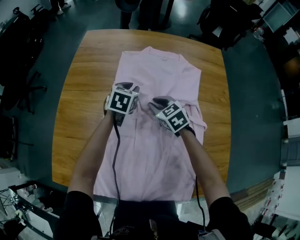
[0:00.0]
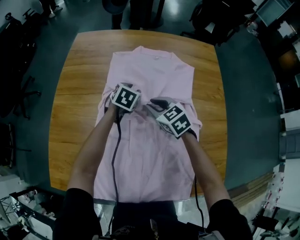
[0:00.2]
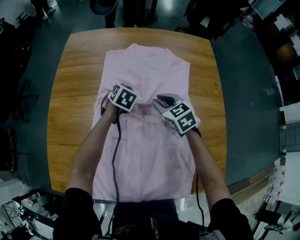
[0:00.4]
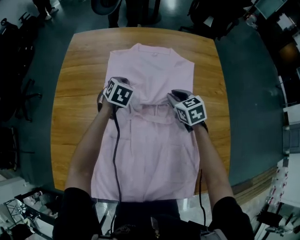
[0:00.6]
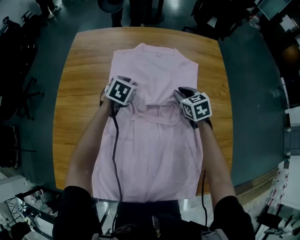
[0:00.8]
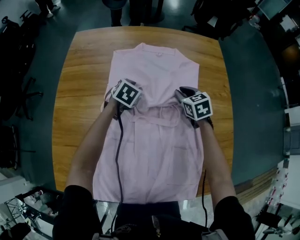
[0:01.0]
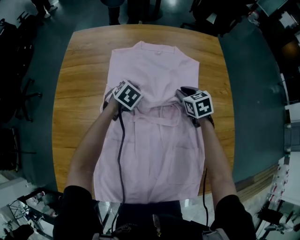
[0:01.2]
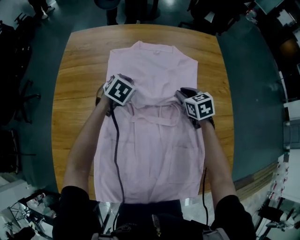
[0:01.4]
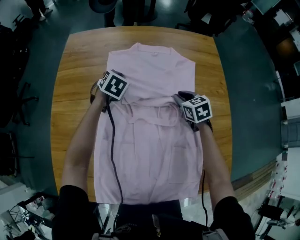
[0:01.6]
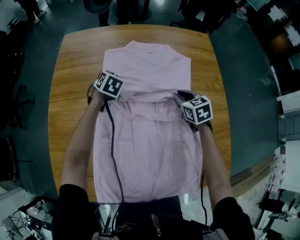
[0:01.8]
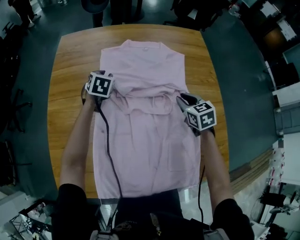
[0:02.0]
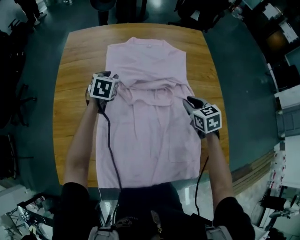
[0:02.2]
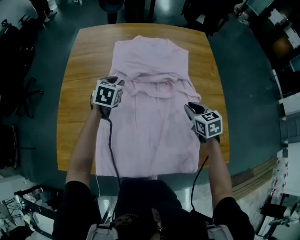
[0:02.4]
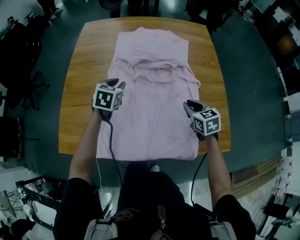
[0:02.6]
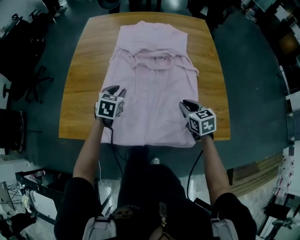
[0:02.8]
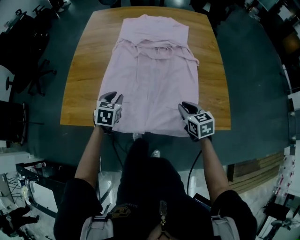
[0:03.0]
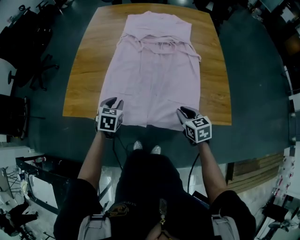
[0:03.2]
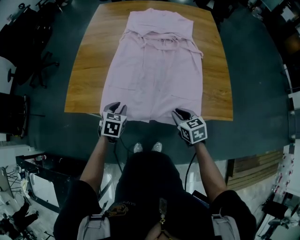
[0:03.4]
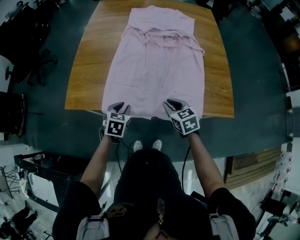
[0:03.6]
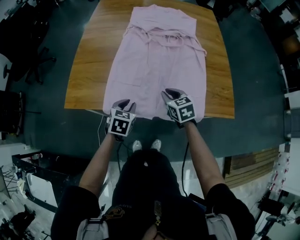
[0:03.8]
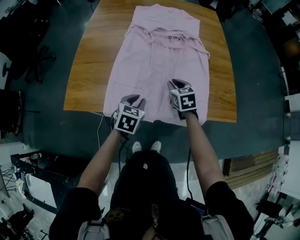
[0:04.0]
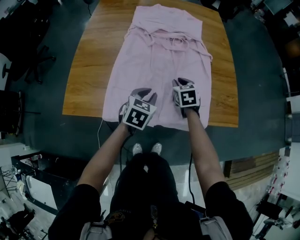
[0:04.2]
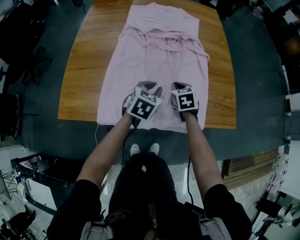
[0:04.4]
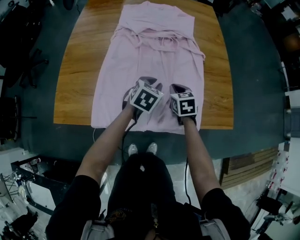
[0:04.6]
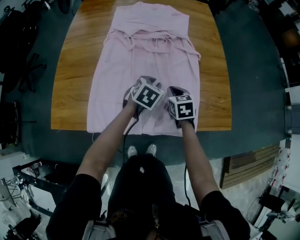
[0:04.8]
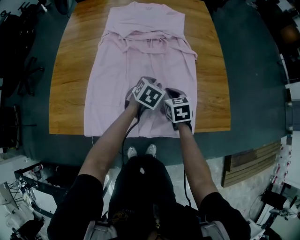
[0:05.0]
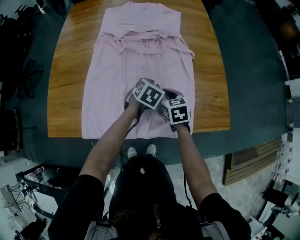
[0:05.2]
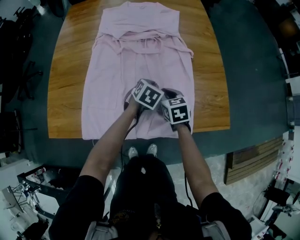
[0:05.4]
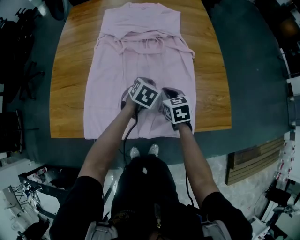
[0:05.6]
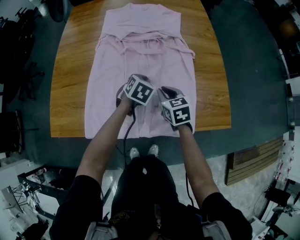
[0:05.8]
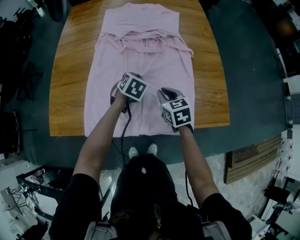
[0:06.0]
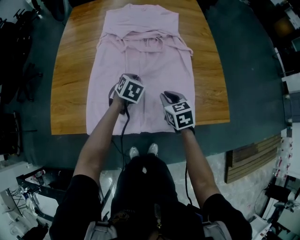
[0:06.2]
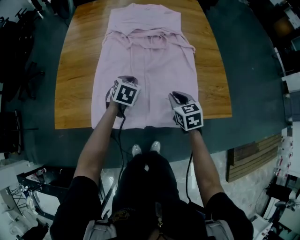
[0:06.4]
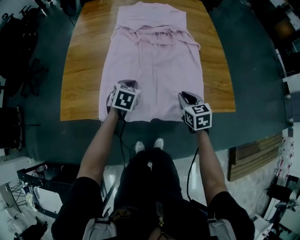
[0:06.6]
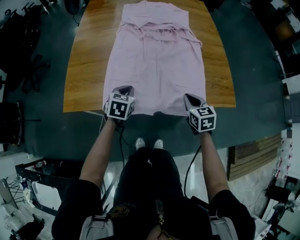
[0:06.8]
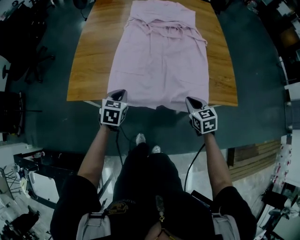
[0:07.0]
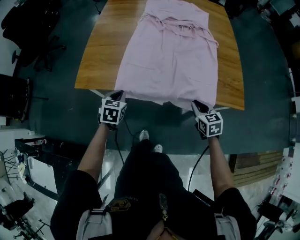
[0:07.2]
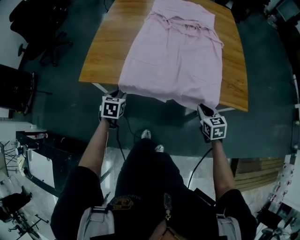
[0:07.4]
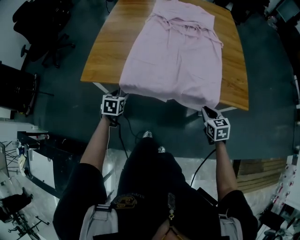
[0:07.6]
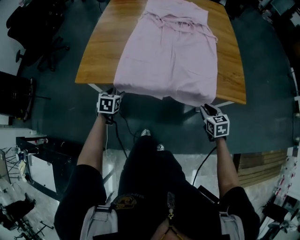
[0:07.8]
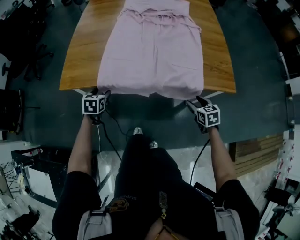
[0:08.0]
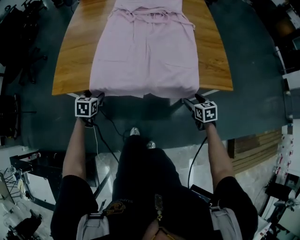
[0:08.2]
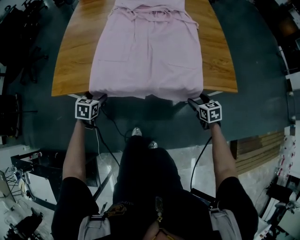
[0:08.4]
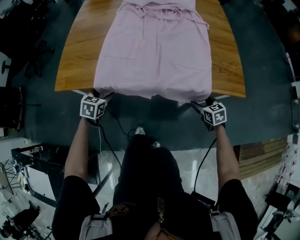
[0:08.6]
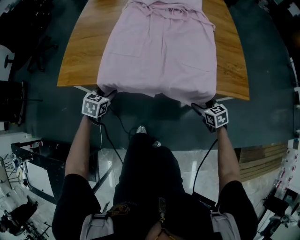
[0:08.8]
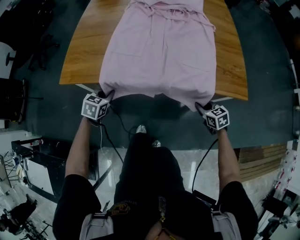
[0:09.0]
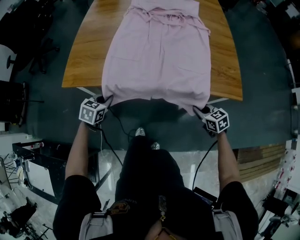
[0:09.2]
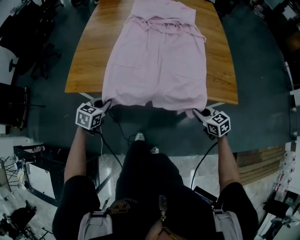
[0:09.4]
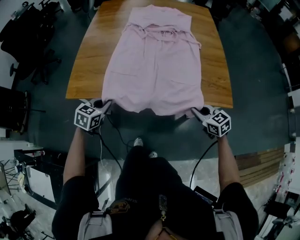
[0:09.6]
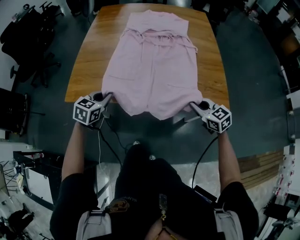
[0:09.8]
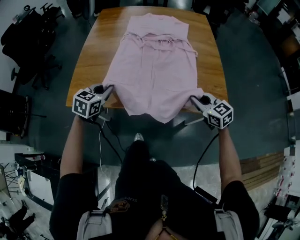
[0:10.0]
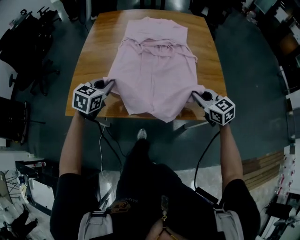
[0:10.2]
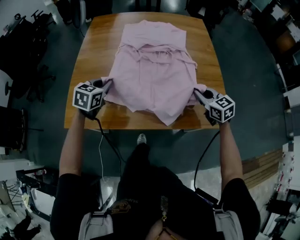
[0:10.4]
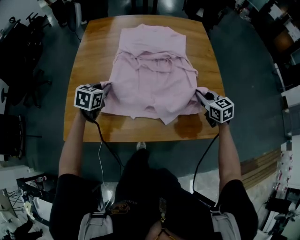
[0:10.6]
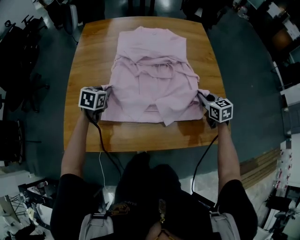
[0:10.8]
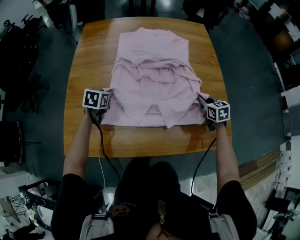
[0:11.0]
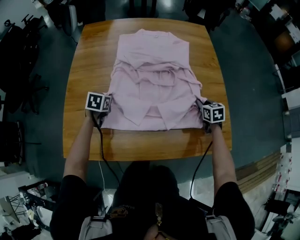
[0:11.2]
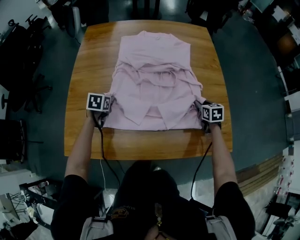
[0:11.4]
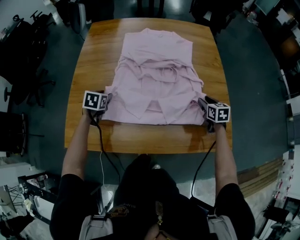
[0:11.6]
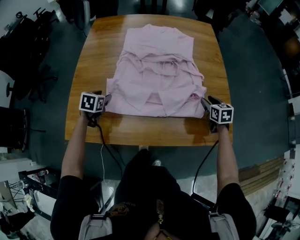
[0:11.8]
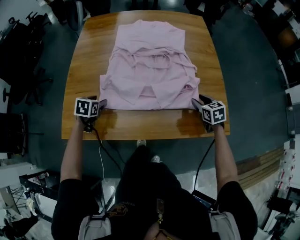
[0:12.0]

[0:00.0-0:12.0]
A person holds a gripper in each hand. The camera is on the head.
0:00.0 to 0:01.6: The right gripper is displaced to the right by some 15 cm, and changes its angle by some 20 degrees; the left gripper travels forward by about 5 cm, and changes its angle by roughly 20 degrees.
0:01.6 to 0:03.0: The pair of grippers is taken backward, approximately 40 cm. The left gripper swivels roughly 20 degrees, and opens up.
0:03.0 to 0:04.4: The right gripper shifts about 15 cm forward, to the left and downward; the left gripper shifts some 15 cm to the right.
0:04.4 to 0:06.0: The left gripper shifts roughly 10 cm forward and downward.
0:06.0 to 0:07.6: The right gripper travels backward by roughly 25 cm, while the left gripper heads to the left and backward, covering some 40 cm, turns by about 30 degrees, and opens.
0:07.6 to 0:09.0: The left gripper ends up roughly 5 cm from where it was, and closes. Meanwhile the right gripper travels downward by some 10 cm, and opens, then closes again.
0:09.0 to 0:10.4: Both grippers move upward and forward, roughly 30 cm. The right gripper turns by some 20 degrees.
0:10.4 to 0:12.0: The right gripper is displaced downward and to the right by some 10 cm, travels forward and back again, some 15 cm each way, turns by approximately 20 degrees, and opens up. The left gripper moves downward and to the left, some 15 cm, changes its angle by about 20 degrees, and opens its fingers.

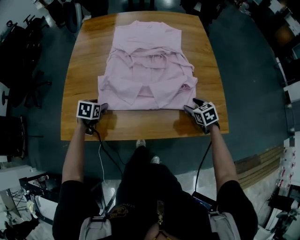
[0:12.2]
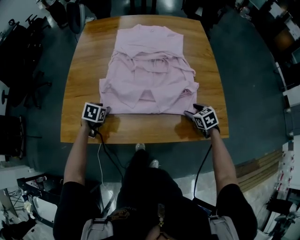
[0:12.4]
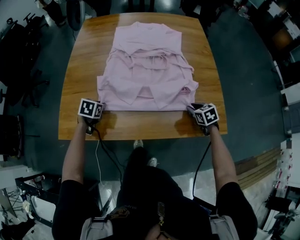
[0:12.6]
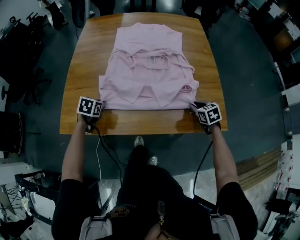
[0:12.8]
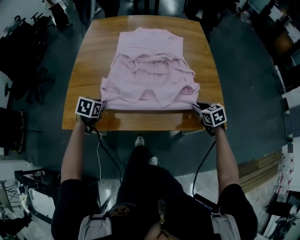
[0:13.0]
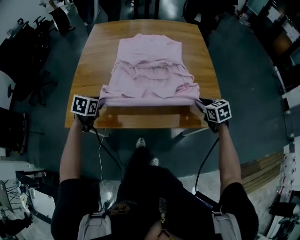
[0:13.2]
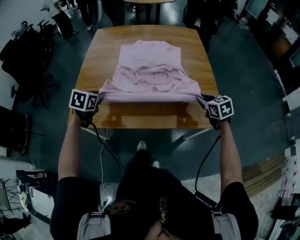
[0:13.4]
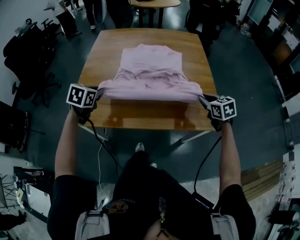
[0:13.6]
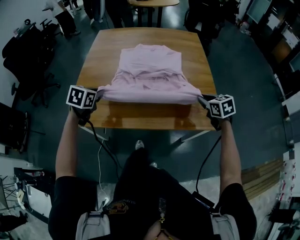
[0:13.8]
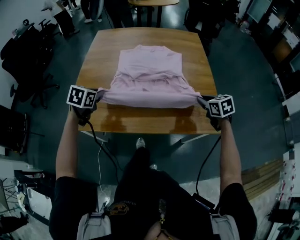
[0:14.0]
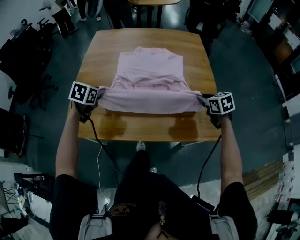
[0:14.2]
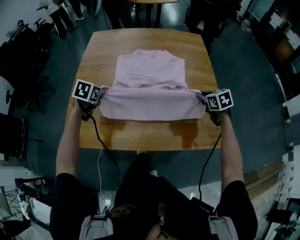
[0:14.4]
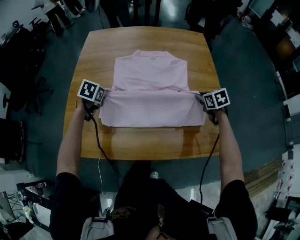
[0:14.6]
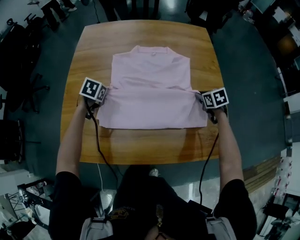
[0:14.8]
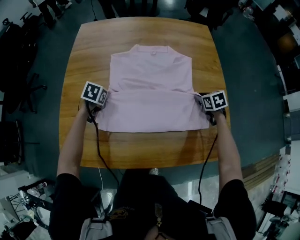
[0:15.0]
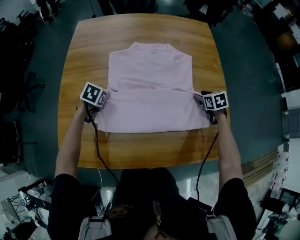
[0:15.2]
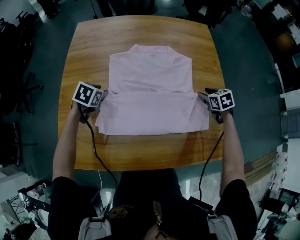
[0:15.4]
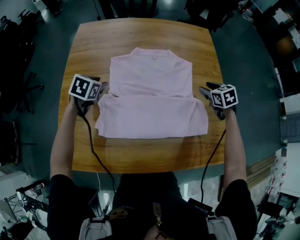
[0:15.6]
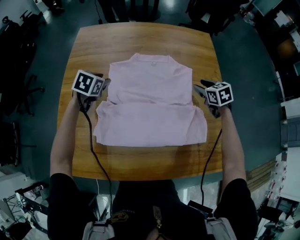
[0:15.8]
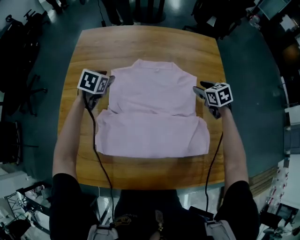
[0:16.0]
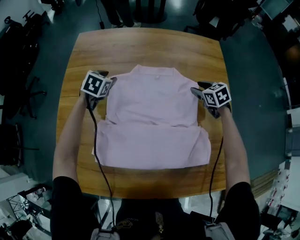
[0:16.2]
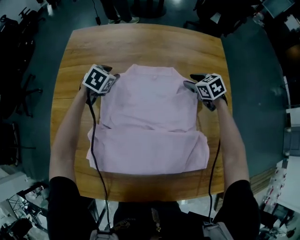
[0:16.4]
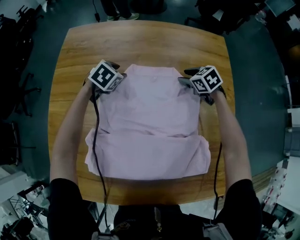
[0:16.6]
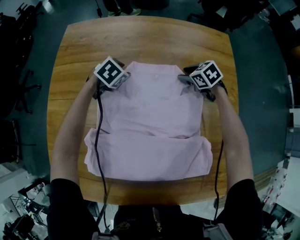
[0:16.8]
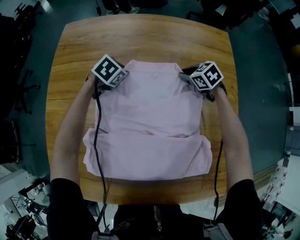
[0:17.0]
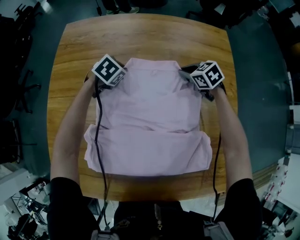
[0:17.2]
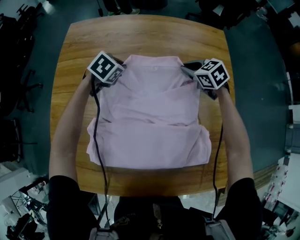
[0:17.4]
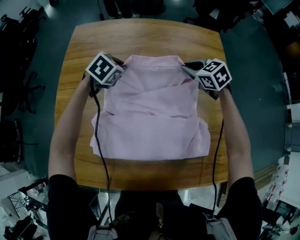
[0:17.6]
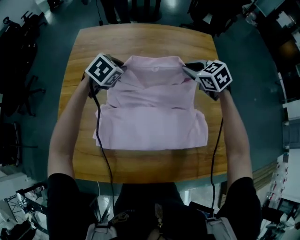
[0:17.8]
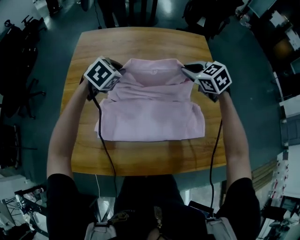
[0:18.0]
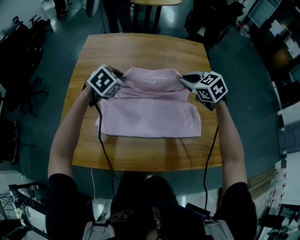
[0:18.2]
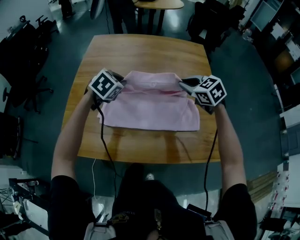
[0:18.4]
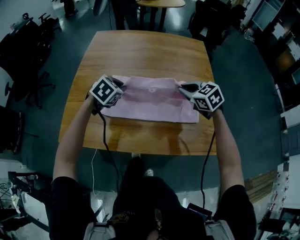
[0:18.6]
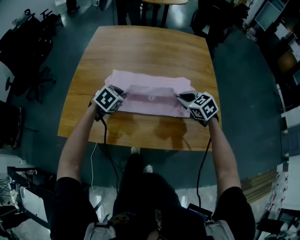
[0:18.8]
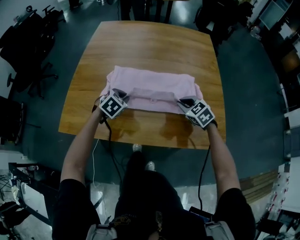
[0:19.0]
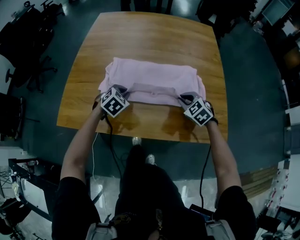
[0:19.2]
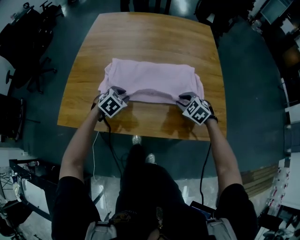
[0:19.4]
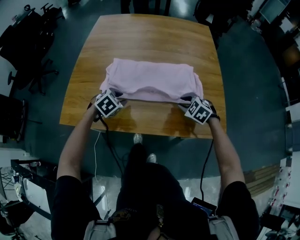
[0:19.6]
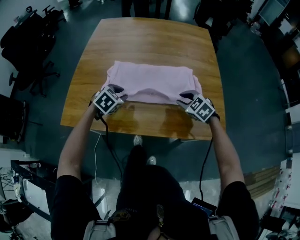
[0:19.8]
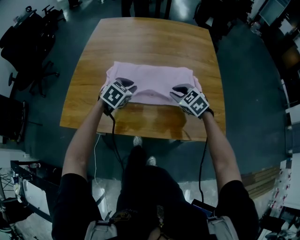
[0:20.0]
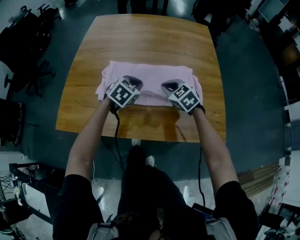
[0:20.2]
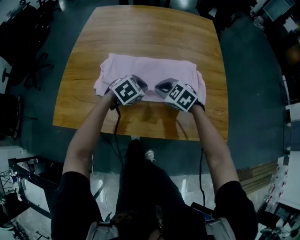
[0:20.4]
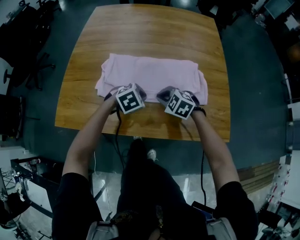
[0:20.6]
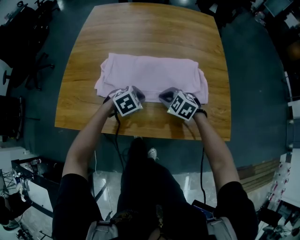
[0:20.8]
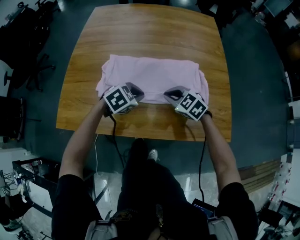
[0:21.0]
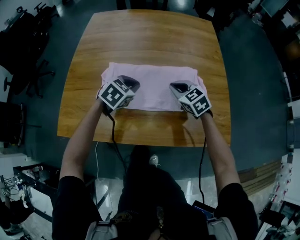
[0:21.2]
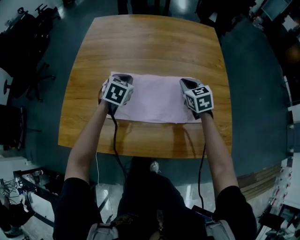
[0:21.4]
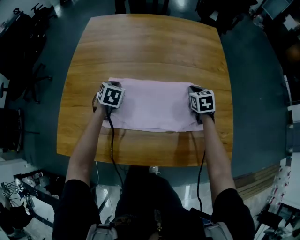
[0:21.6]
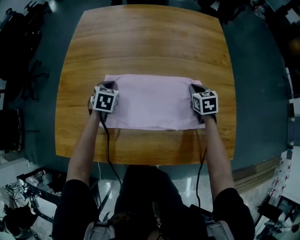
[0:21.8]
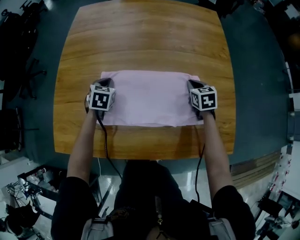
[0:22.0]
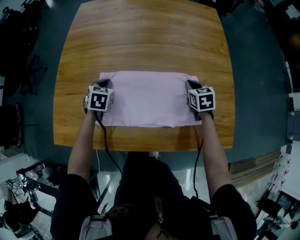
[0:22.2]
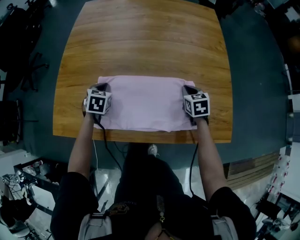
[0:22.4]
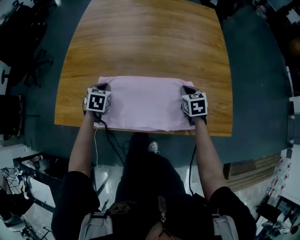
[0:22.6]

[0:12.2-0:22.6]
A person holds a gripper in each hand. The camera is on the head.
0:12.2 to 0:13.6: The right gripper is displaced upward by roughly 15 cm, and closes its fingers. The left gripper moves upward and backward, some 20 cm, and closes its fingers.
0:13.6 to 0:15.2: The grippers both shift forward and downward by approximately 30 cm. The left gripper changes its angle by approximately 20 degrees; the right gripper swivels roughly 20 degrees, and opens.
0:15.2 to 0:16.6: The left gripper is displaced forward and to the right by about 30 cm, and opens, while the right gripper goes approximately 25 cm forward, and rotates approximately 30 degrees.
0:16.6 to 0:18.2: The grippers both shift backward and upward by some 30 cm. The right gripper closes its fingers. The left gripper closes its fingers.
0:18.2 to 0:19.6: Both grippers travel together backward and downward, about 30 cm. The right gripper turns by roughly 20 degrees, while the left gripper opens.
0:19.6 to 0:21.2: The left gripper travels forward, to the right and upward by roughly 15 cm, and closes, while the right gripper is displaced forward, to the left and upward by some 15 cm, changes its angle by some 30 degrees, and closes its fingers.
0:21.2 to 0:22.6: The left gripper is displaced to the left and downward by roughly 20 cm, travels forward and back again, some 15 cm each way, and swivels some 40 degrees; the right gripper travels downward and to the right by about 10 cm, travels forward and back again, some 10 cm each way, and changes its angle by some 30 degrees.

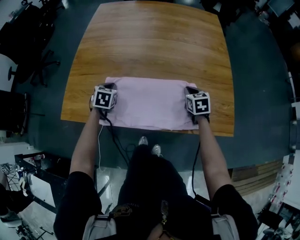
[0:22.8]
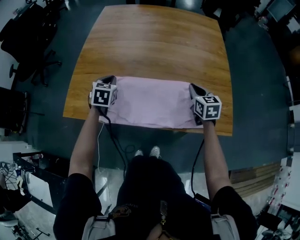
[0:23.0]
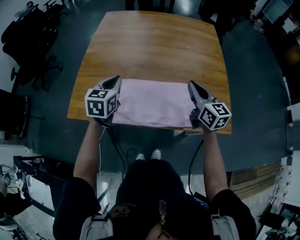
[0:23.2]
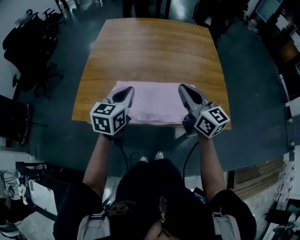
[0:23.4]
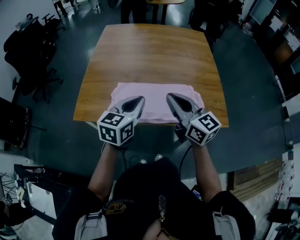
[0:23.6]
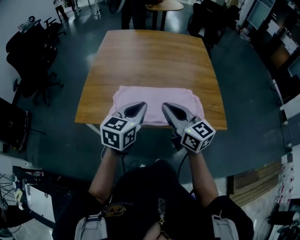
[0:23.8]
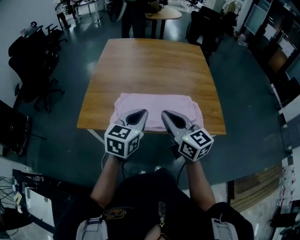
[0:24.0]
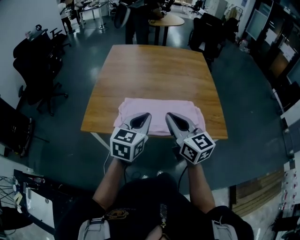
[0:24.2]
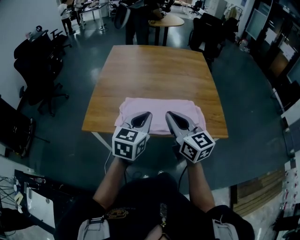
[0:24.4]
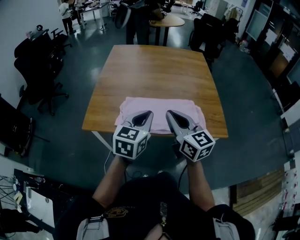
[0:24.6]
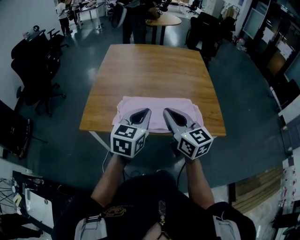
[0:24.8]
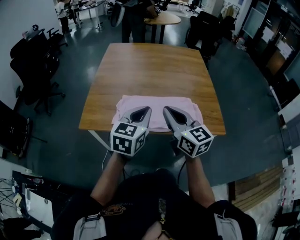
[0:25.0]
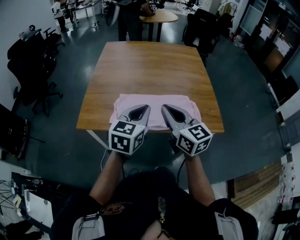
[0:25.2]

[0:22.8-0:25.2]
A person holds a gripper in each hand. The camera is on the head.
0:22.8 to 0:24.0: The left gripper moves upward and backward, some 35 cm, and angles its fingers upward, by about 30 degrees, while the right gripper shifts about 40 cm upward, backward and to the left, and tips its fingers upward by about 40 degrees.
0:24.0 to 0:25.2: The grippers make only small movements.
